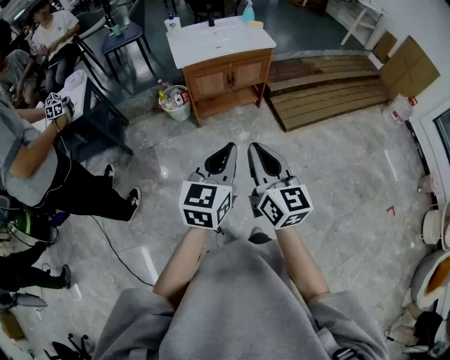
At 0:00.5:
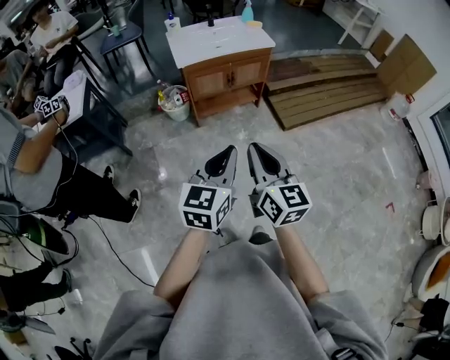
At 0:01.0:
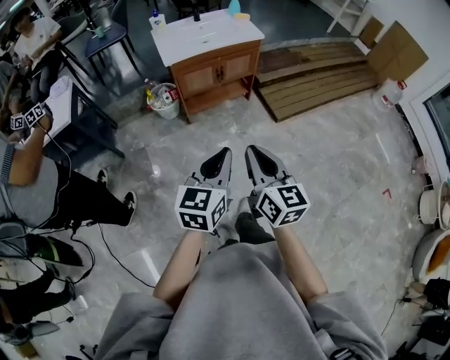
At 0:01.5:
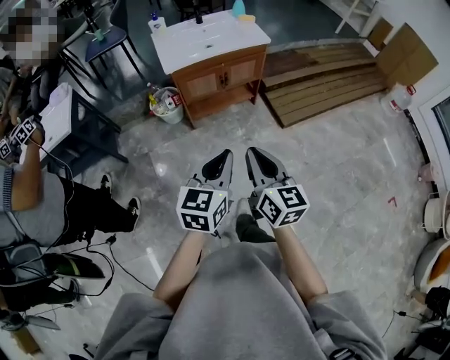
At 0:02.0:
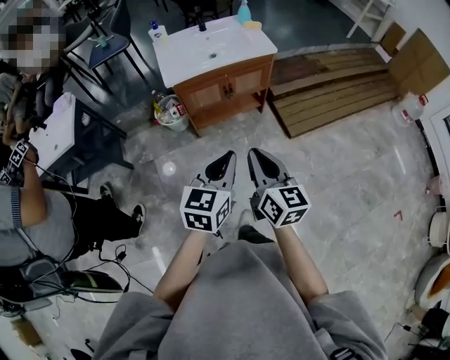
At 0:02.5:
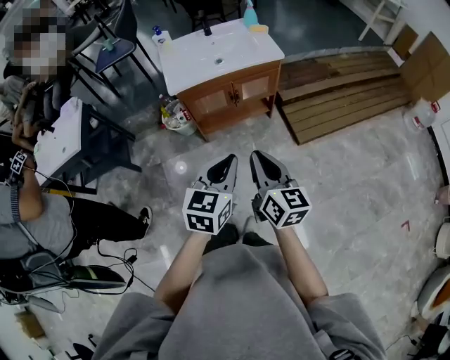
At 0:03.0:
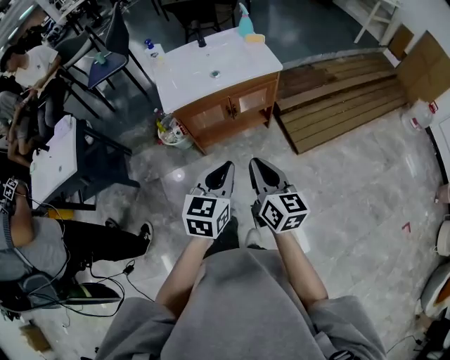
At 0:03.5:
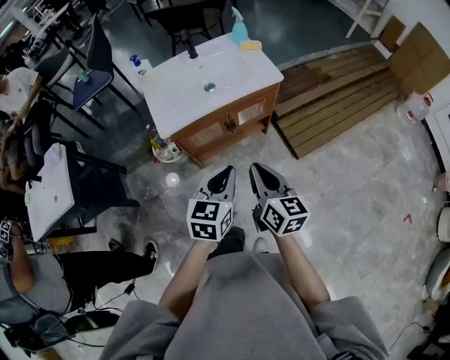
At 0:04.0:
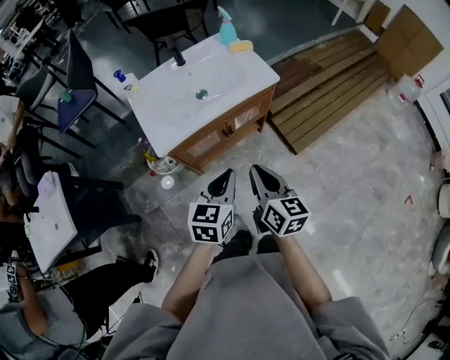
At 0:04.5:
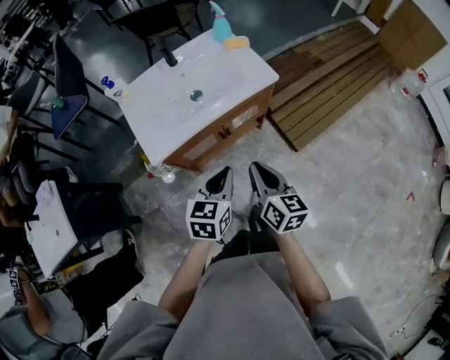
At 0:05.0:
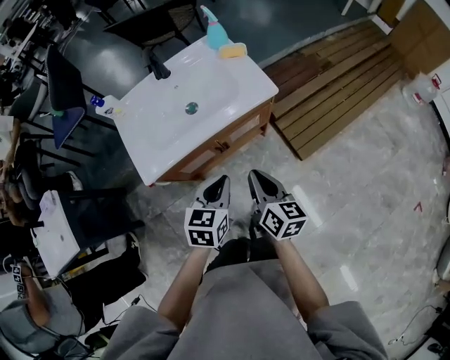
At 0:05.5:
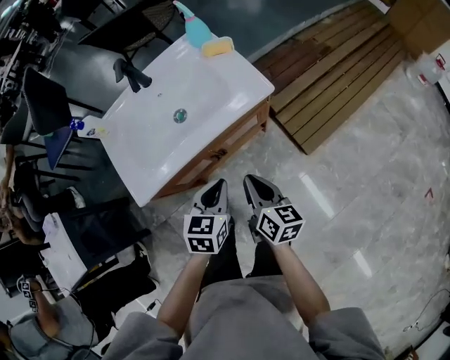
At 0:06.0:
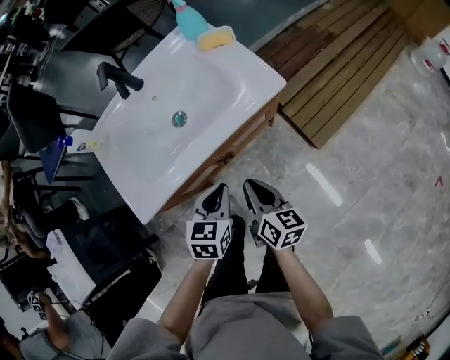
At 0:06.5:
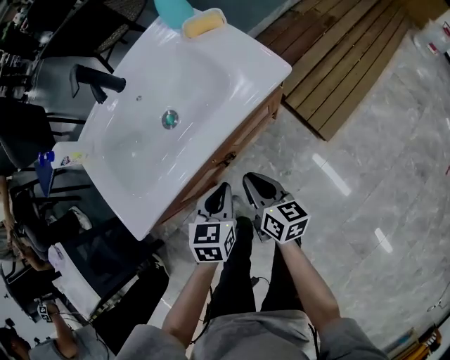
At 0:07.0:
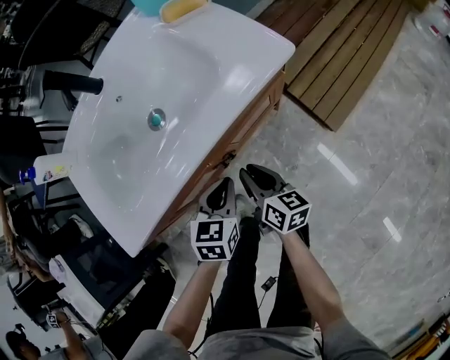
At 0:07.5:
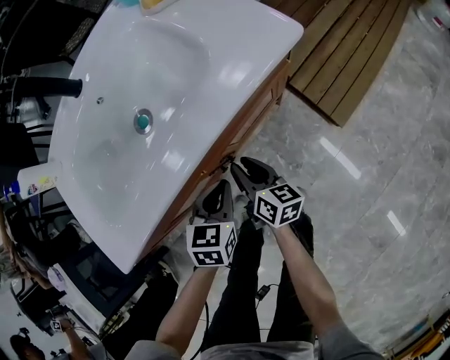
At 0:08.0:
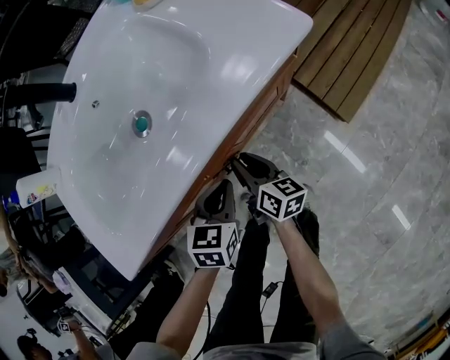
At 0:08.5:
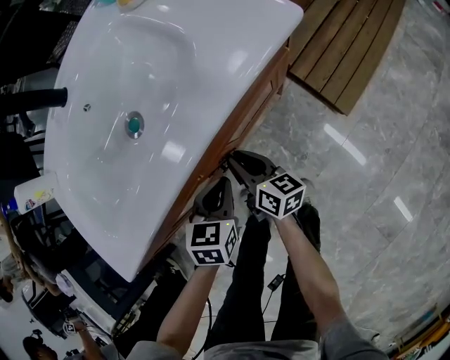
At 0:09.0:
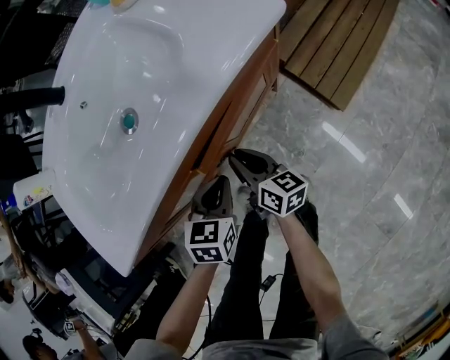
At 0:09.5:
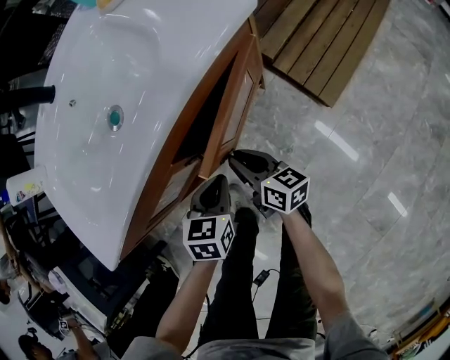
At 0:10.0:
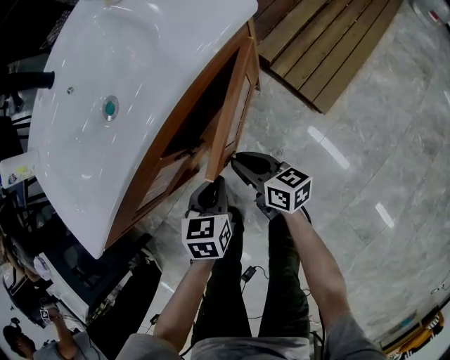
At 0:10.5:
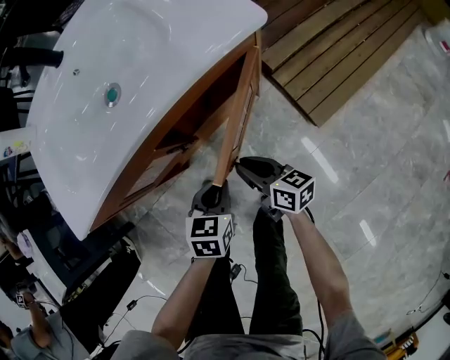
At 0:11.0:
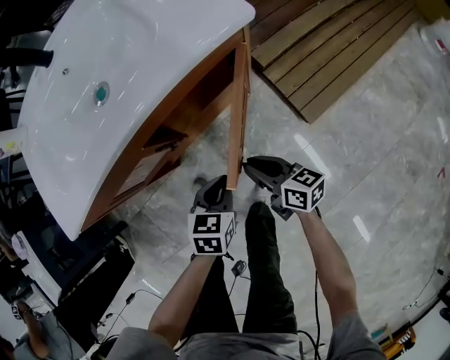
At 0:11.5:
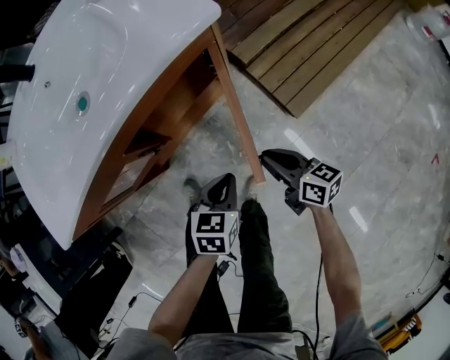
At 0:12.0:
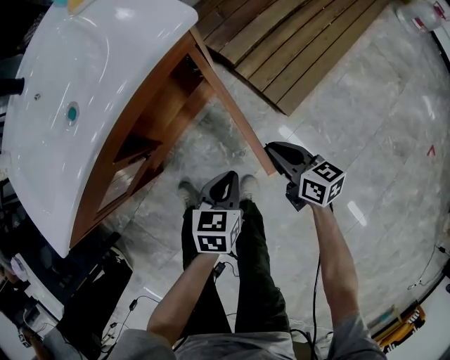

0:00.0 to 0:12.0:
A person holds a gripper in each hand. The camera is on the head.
0:00.0 to 0:02.0: Both grippers move forward, roughly 20 cm.
0:02.0 to 0:04.0: The two grippers go some 30 cm forward.
0:04.0 to 0:06.0: The two grippers go about 25 cm downward and forward.
0:06.0 to 0:08.0: Both grippers travel together downward, some 20 cm. The right gripper opens.
0:08.0 to 0:10.0: Both grippers move backward and to the right, approximately 10 cm.
0:10.0 to 0:12.0: Both grippers travel together to the right, approximately 20 cm.

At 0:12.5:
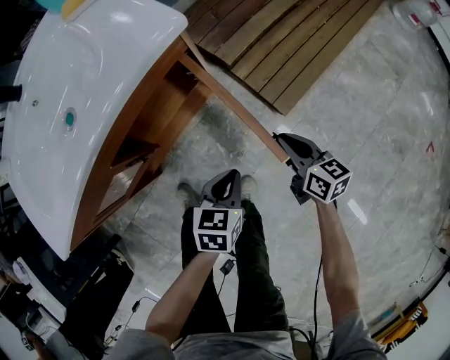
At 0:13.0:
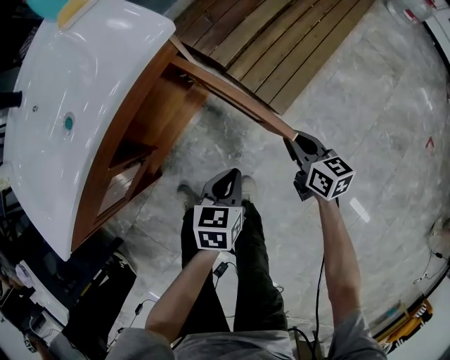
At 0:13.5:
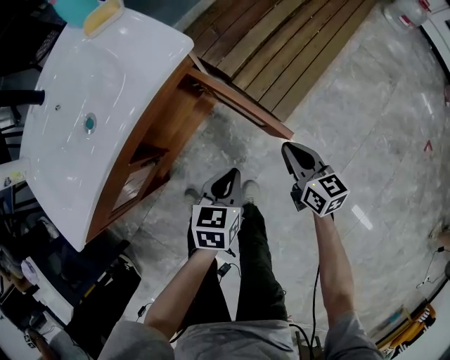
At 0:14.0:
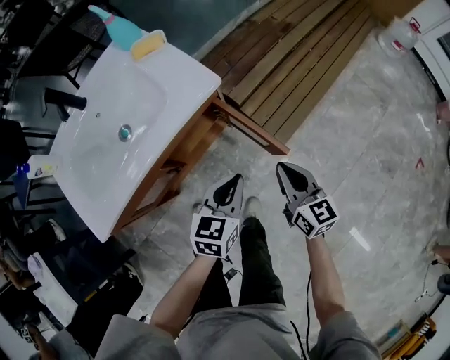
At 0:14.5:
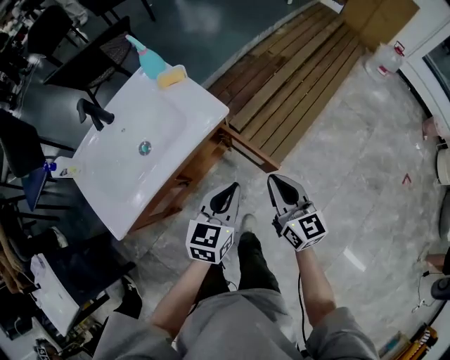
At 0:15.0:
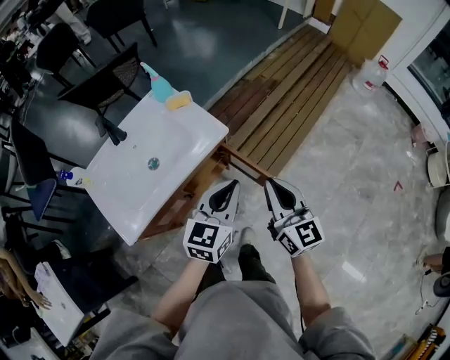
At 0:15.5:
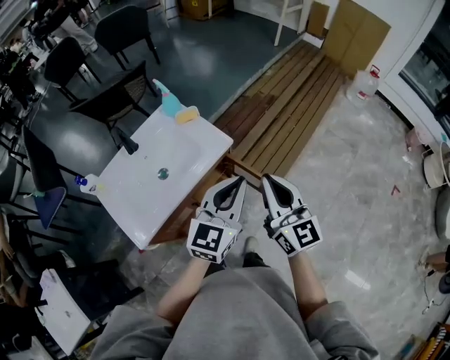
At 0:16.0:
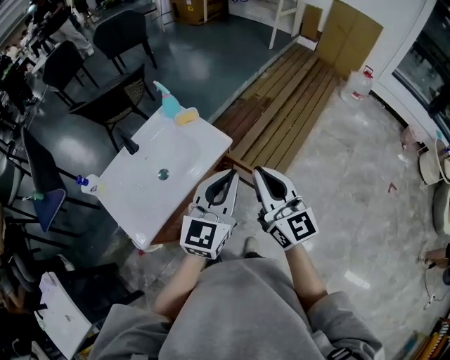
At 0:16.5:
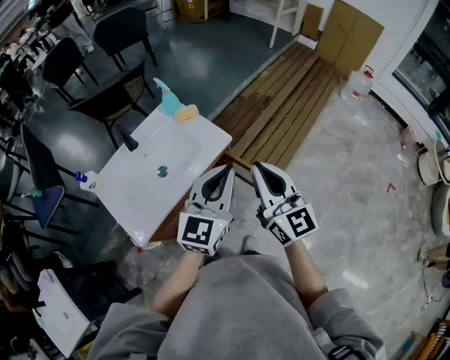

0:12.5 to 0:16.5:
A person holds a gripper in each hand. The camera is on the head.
0:12.5 to 0:14.5: The grippers both shift upward by about 35 cm. The left gripper rotates about 30 degrees. Meanwhile the right gripper swivels approximately 30 degrees.
0:14.5 to 0:16.5: Both grippers move upward, roughly 25 cm. The right gripper changes its angle by approximately 20 degrees. Meanwhile the left gripper swivels about 30 degrees.

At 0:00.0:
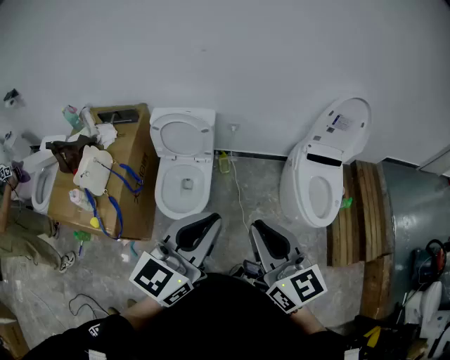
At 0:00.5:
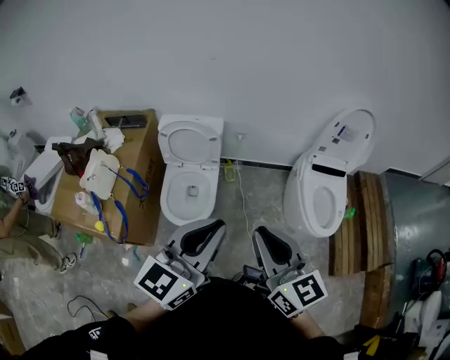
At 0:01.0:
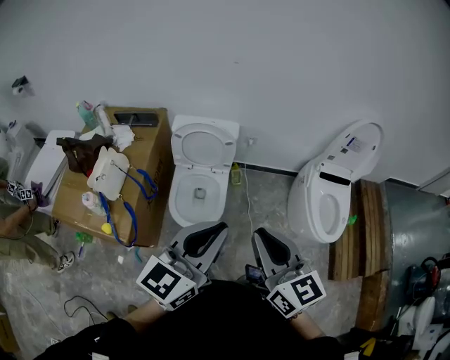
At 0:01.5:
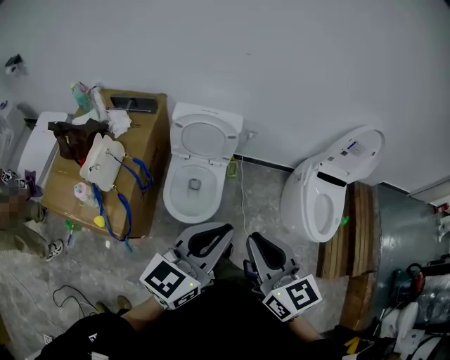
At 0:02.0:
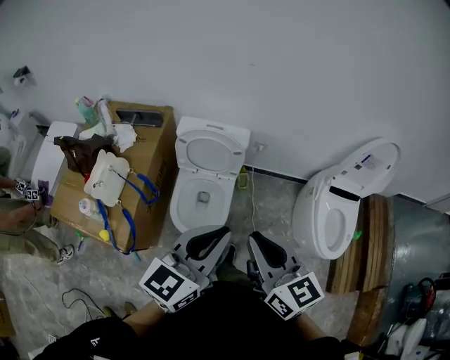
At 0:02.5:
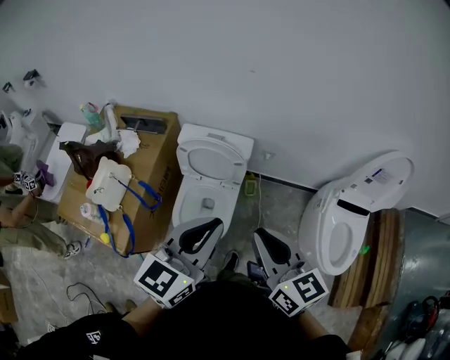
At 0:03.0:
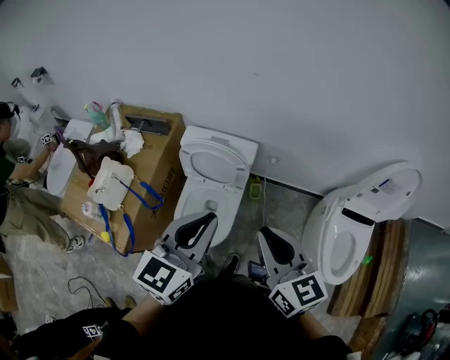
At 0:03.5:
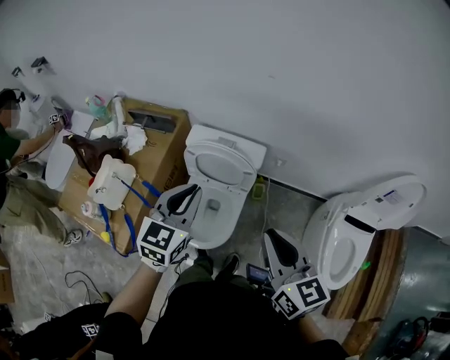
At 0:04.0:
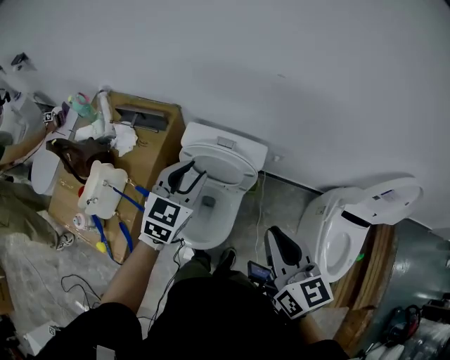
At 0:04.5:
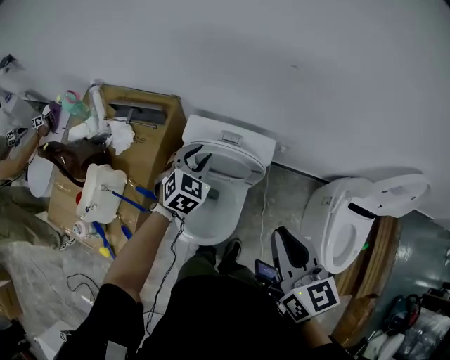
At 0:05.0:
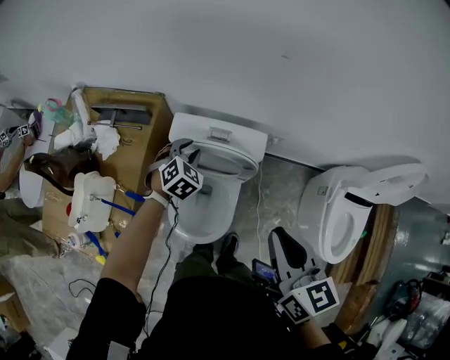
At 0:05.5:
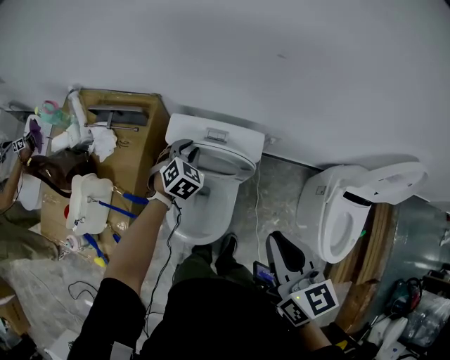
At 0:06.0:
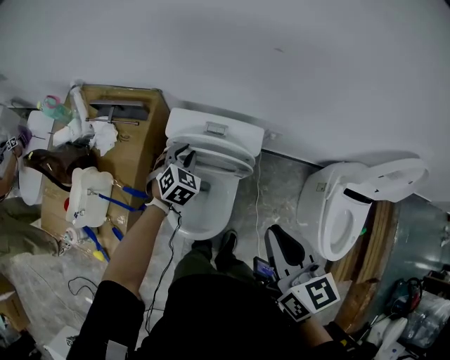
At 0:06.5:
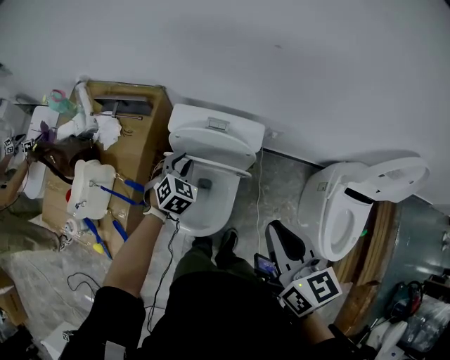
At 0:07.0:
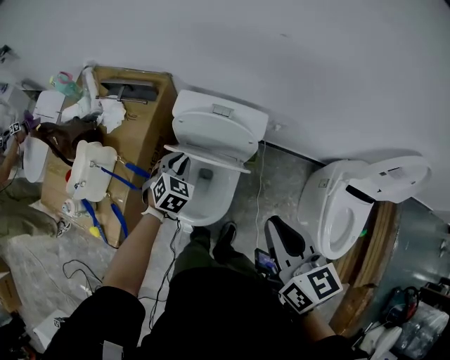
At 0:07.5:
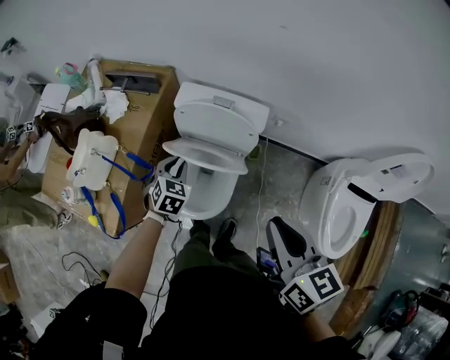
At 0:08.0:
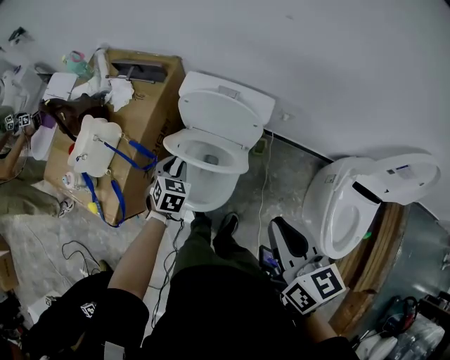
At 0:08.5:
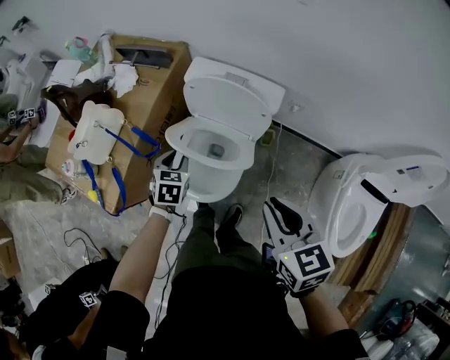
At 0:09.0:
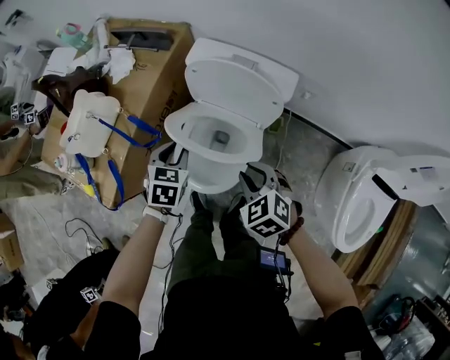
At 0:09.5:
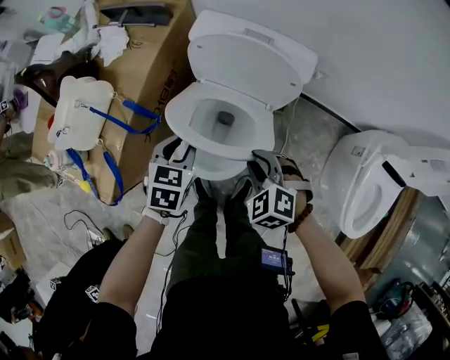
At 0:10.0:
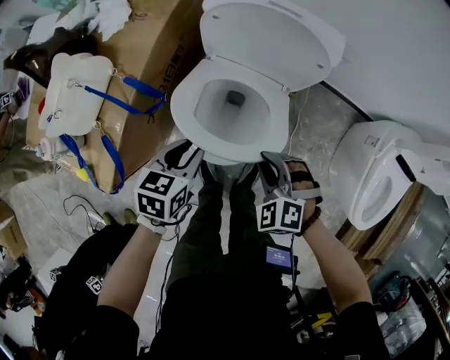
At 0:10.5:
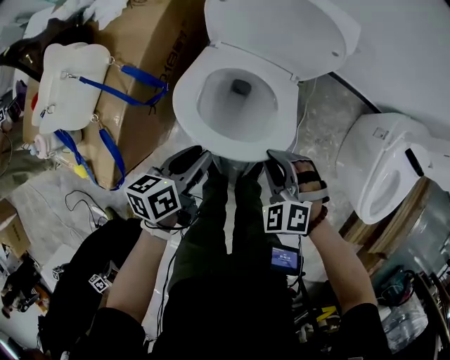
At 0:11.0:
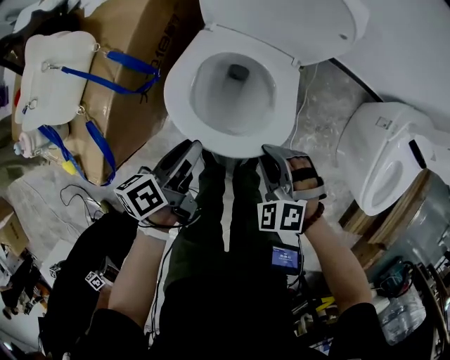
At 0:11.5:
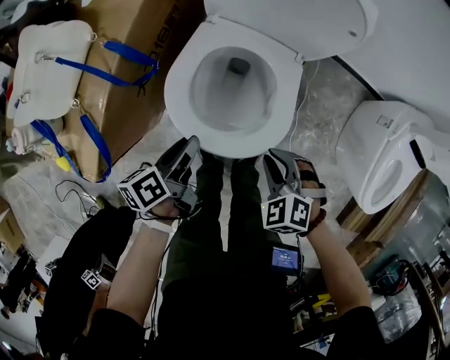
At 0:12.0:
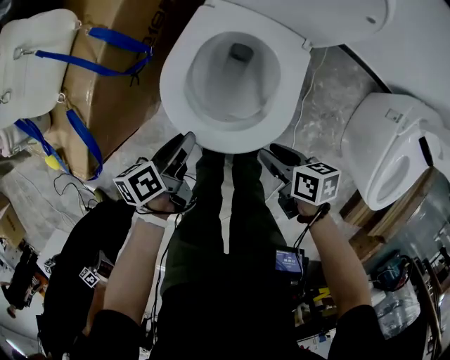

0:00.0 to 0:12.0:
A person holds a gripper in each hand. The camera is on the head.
0:00.0 to 0:02.0: Both grippers travel together to the left and forward, approximately 15 cm.
0:02.0 to 0:04.0: The right gripper heads forward, covering about 20 cm; the left gripper goes approximately 35 cm forward, rotates approximately 30 degrees, and opens its fingers.
0:04.0 to 0:06.0: The right gripper moves some 5 cm; the left gripper heads downward and forward, covering roughly 25 cm, and turns by roughly 30 degrees.
0:06.0 to 0:08.0: The left gripper travels backward by approximately 20 cm, and rotates approximately 20 degrees. The right gripper moves backward, some 10 cm.
0:08.0 to 0:10.0: The right gripper goes some 35 cm downward, and rolls counterclockwise, seen from behind, by about 70 degrees, while the left gripper heads downward and backward, covering roughly 10 cm, and swivels approximately 30 degrees.
0:10.0 to 0:12.0: Both grippers move downward and backward, some 15 cm. The right gripper rolls clockwise, seen from behind, by approximately 90 degrees; the left gripper rolls counterclockwise, seen from behind, by approximately 50 degrees.
